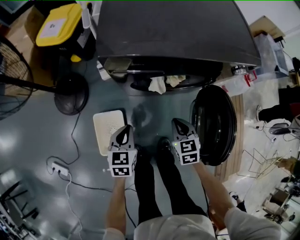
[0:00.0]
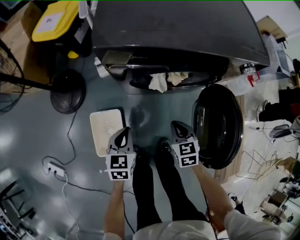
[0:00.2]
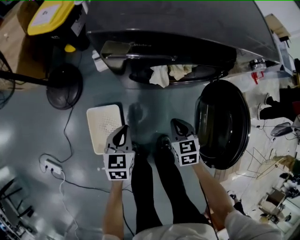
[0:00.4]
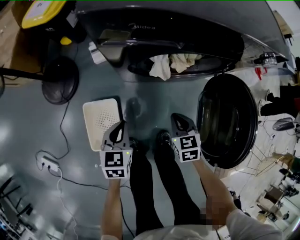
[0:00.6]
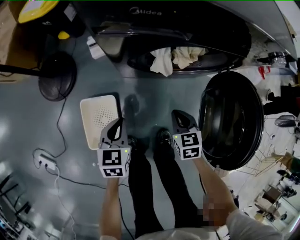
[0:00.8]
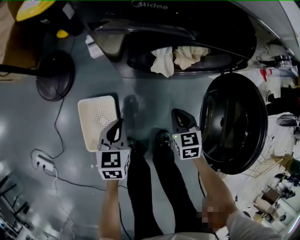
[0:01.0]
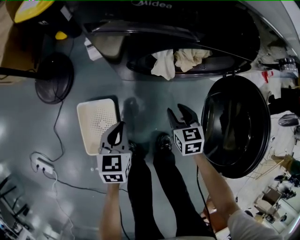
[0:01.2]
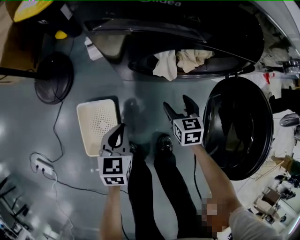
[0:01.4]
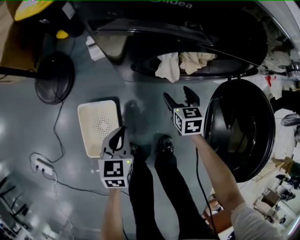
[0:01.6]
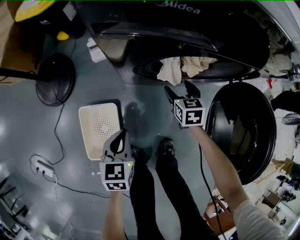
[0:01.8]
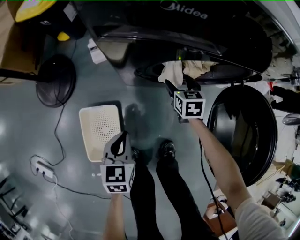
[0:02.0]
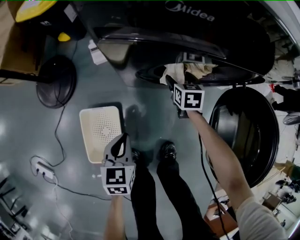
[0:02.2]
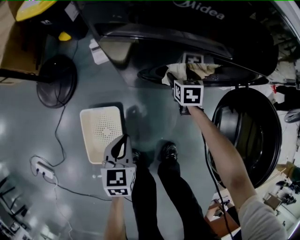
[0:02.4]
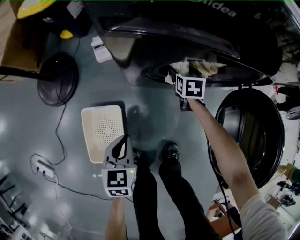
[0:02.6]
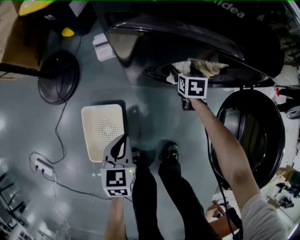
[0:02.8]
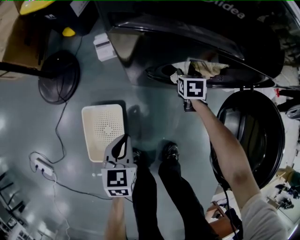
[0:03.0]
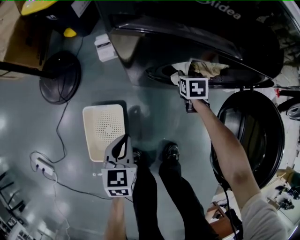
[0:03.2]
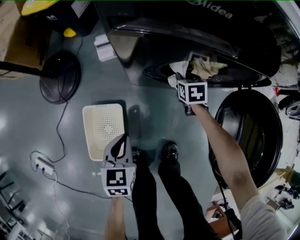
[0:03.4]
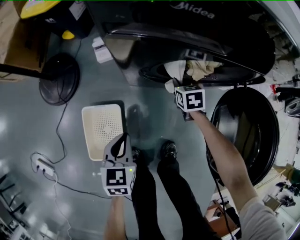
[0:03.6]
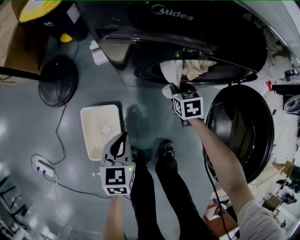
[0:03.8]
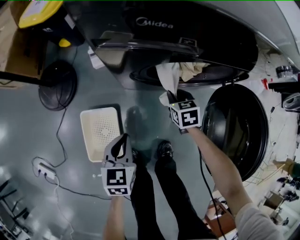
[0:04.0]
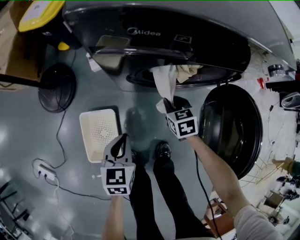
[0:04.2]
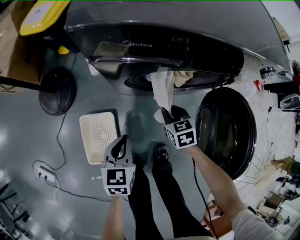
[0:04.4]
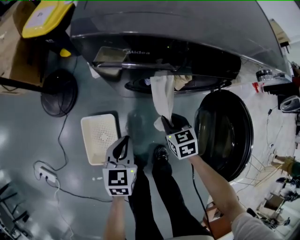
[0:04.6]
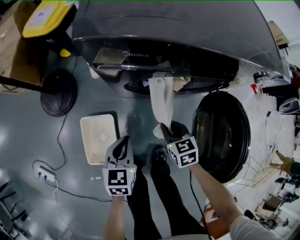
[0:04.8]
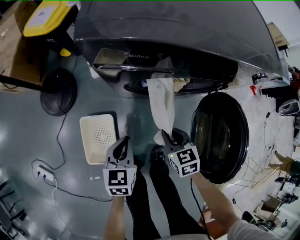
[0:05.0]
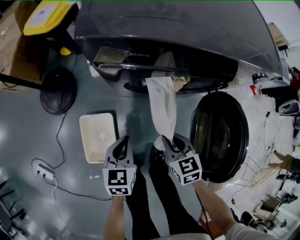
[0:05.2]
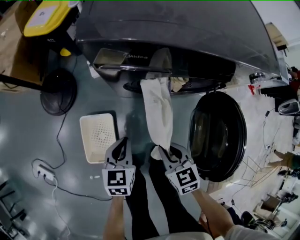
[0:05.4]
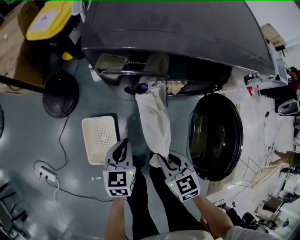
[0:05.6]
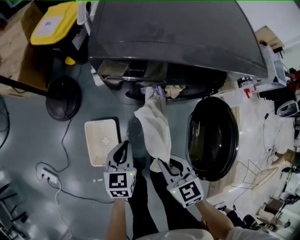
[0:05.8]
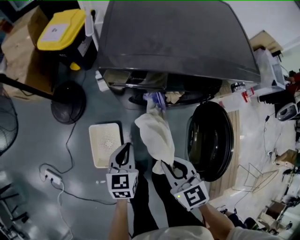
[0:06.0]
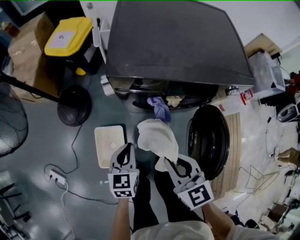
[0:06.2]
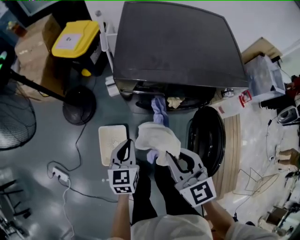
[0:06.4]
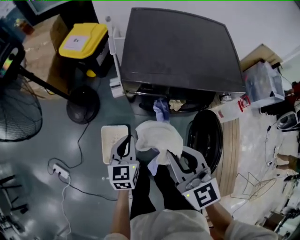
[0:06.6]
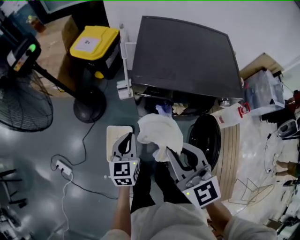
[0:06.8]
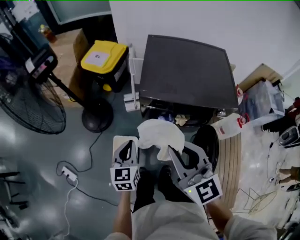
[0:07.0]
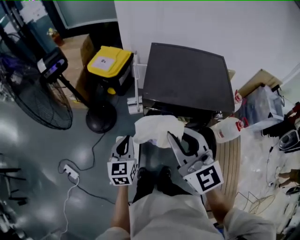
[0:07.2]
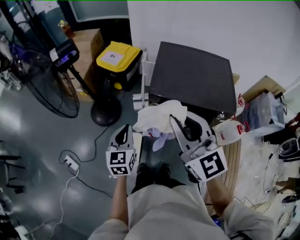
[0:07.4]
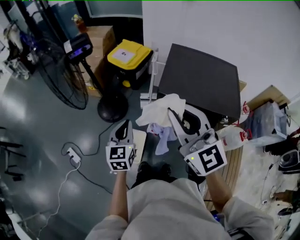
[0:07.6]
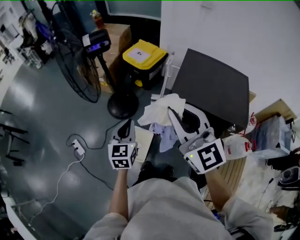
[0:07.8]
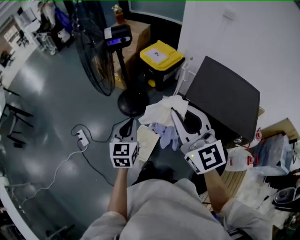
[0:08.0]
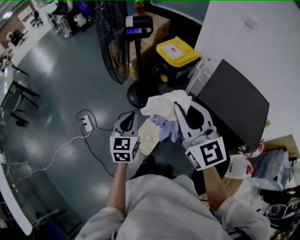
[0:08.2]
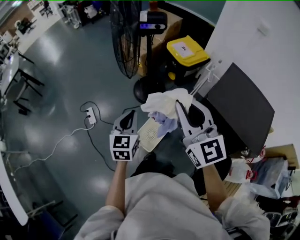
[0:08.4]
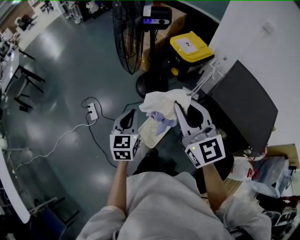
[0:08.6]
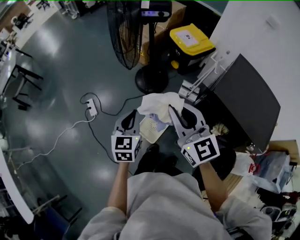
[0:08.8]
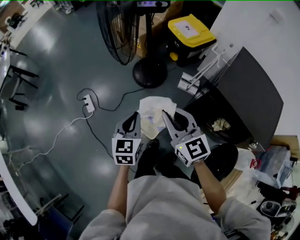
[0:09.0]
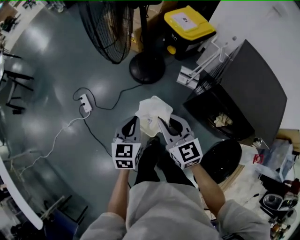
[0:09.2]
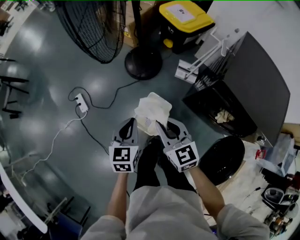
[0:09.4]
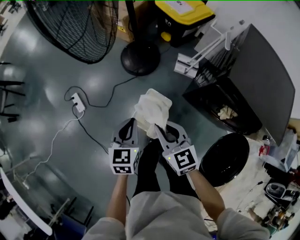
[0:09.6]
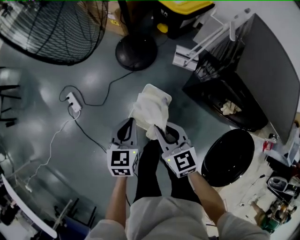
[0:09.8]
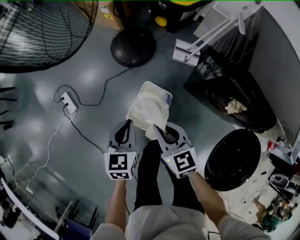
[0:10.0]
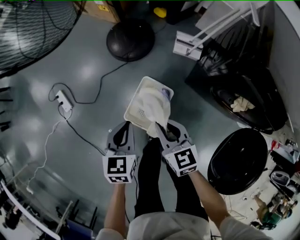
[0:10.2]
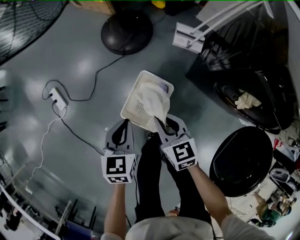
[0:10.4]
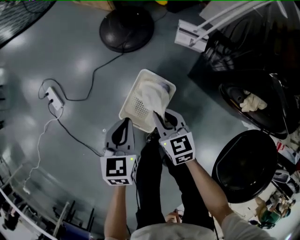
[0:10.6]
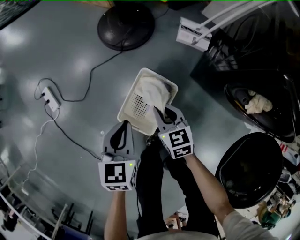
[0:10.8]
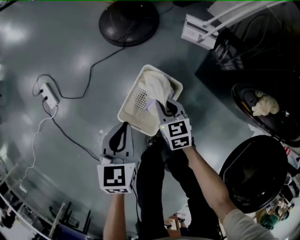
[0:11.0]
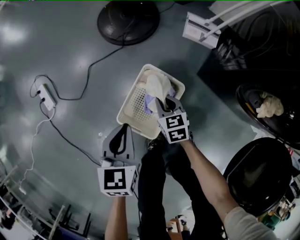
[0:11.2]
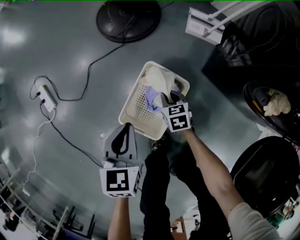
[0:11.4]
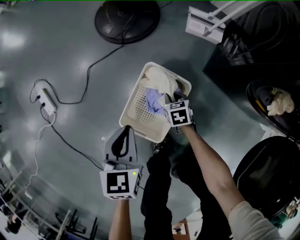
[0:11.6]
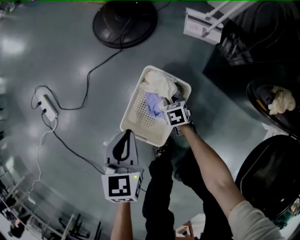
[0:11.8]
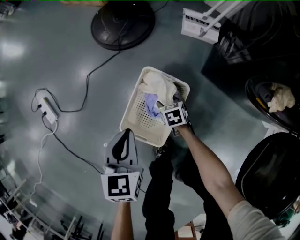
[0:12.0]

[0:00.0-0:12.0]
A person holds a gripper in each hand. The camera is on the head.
0:00.0 to 0:01.6: The left gripper is displaced downward by approximately 15 cm; the right gripper heads downward and forward, covering some 25 cm, and opens up.
0:01.6 to 0:03.0: The right gripper moves forward and downward, some 15 cm, and closes.
0:03.0 to 0:04.4: The left gripper goes about 10 cm upward and to the right. The right gripper goes approximately 20 cm backward and upward.
0:04.4 to 0:06.0: The left gripper heads upward, covering roughly 10 cm, while the right gripper goes about 30 cm upward and backward, and turns by some 20 degrees.
0:06.0 to 0:07.6: The grippers both shift upward by roughly 40 cm. The left gripper changes its angle by about 30 degrees, while the right gripper points its fingers about 40 degrees further upward.
0:07.6 to 0:09.0: The left gripper moves to the left, some 20 cm, and swivels approximately 20 degrees, while the right gripper travels to the left, downward and forward by about 30 cm, and changes its angle by about 30 degrees.
0:09.0 to 0:10.4: Both grippers travel together downward, about 40 cm. The right gripper rotates approximately 30 degrees.
0:10.4 to 0:12.0: The right gripper is displaced downward by approximately 40 cm, swivels about 30 degrees, and opens; the left gripper moves downward, some 15 cm.

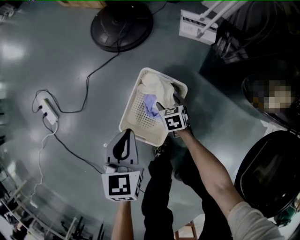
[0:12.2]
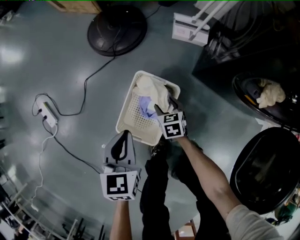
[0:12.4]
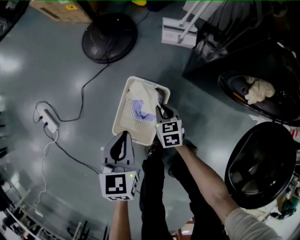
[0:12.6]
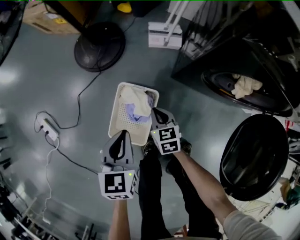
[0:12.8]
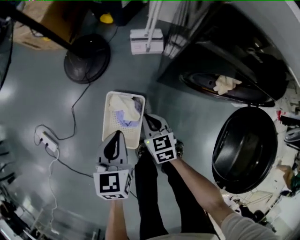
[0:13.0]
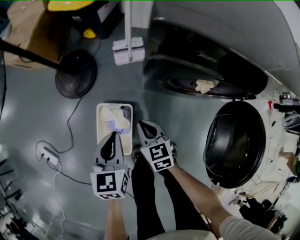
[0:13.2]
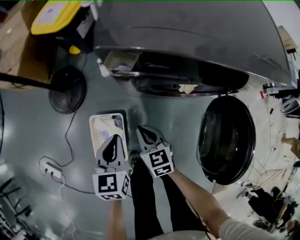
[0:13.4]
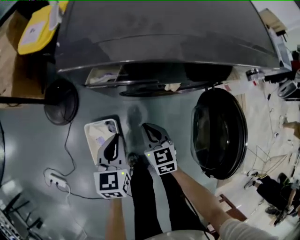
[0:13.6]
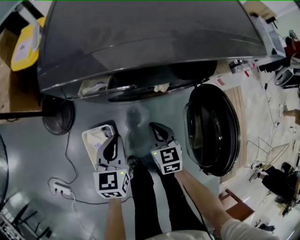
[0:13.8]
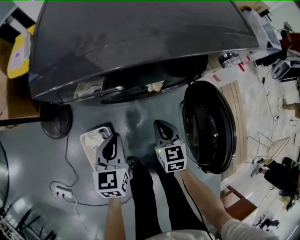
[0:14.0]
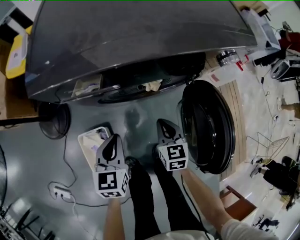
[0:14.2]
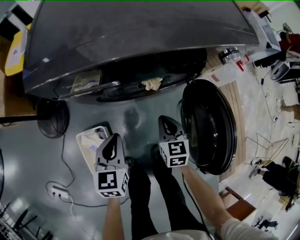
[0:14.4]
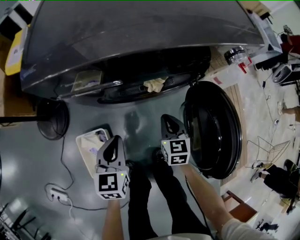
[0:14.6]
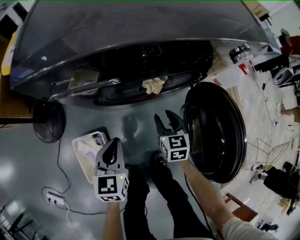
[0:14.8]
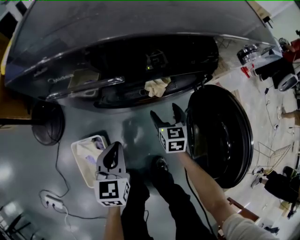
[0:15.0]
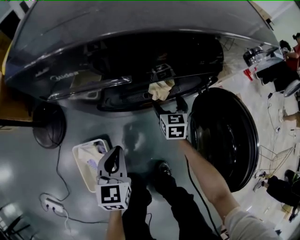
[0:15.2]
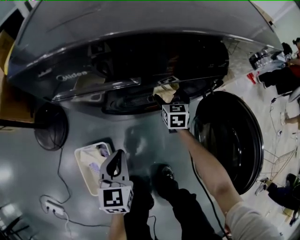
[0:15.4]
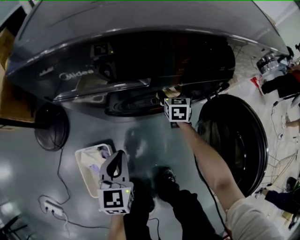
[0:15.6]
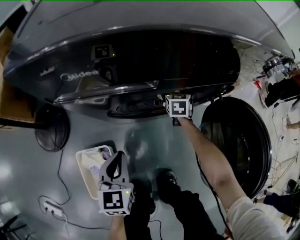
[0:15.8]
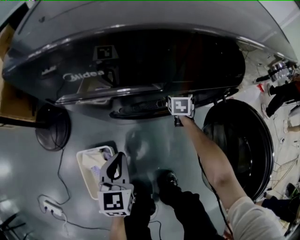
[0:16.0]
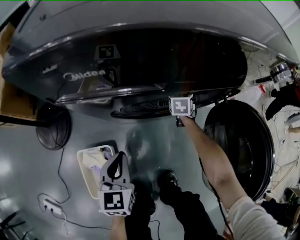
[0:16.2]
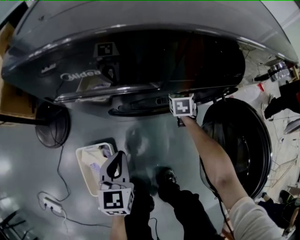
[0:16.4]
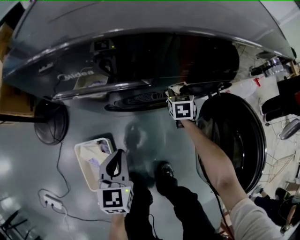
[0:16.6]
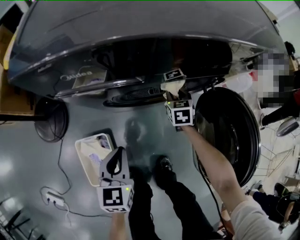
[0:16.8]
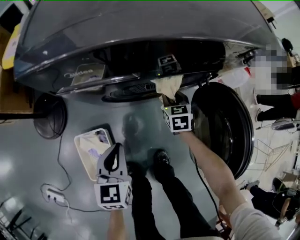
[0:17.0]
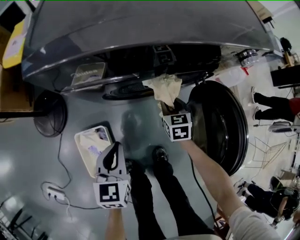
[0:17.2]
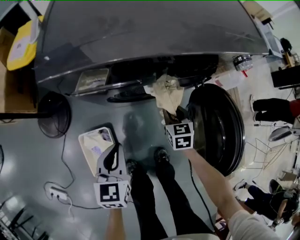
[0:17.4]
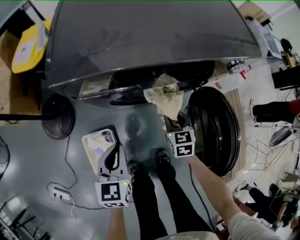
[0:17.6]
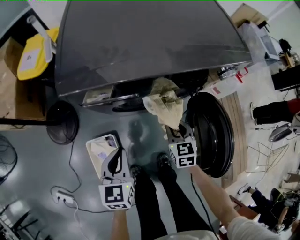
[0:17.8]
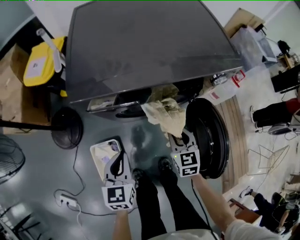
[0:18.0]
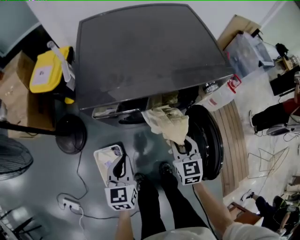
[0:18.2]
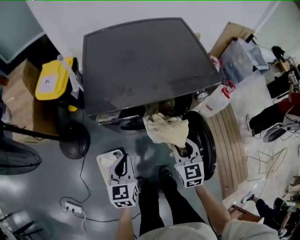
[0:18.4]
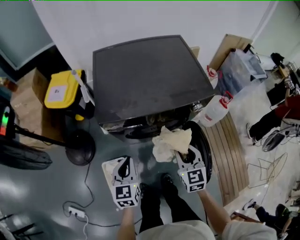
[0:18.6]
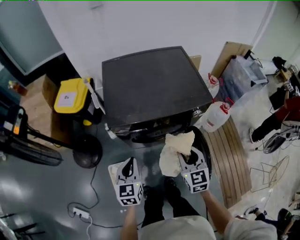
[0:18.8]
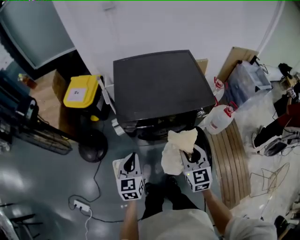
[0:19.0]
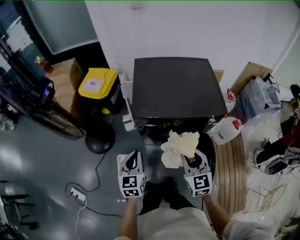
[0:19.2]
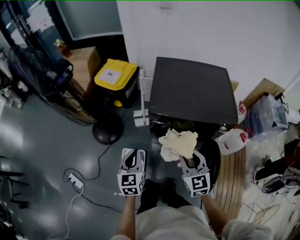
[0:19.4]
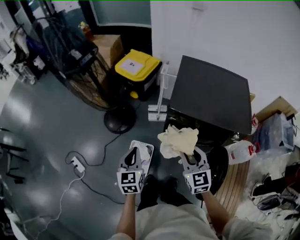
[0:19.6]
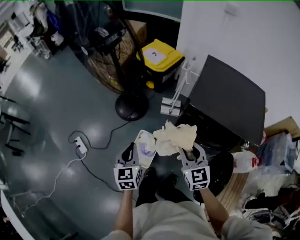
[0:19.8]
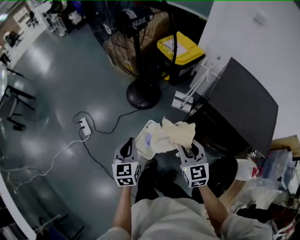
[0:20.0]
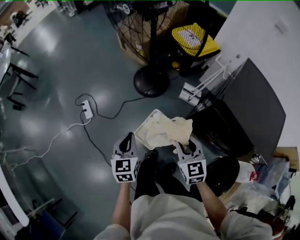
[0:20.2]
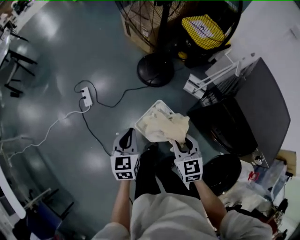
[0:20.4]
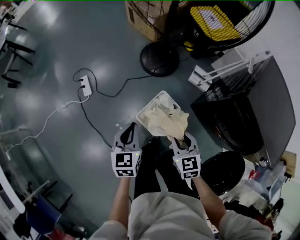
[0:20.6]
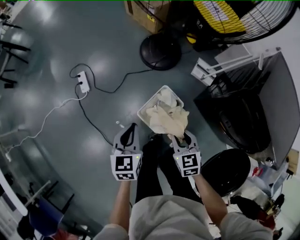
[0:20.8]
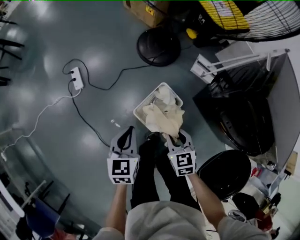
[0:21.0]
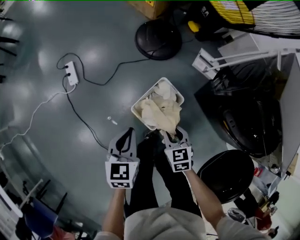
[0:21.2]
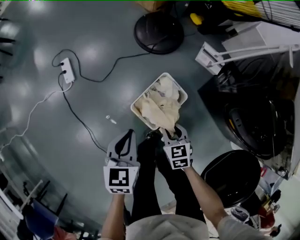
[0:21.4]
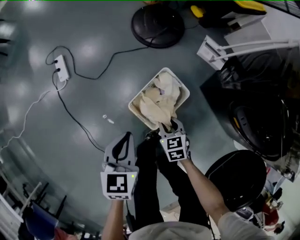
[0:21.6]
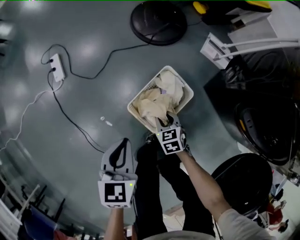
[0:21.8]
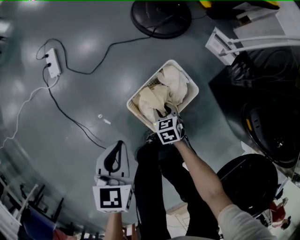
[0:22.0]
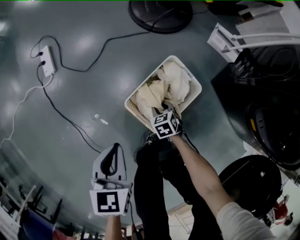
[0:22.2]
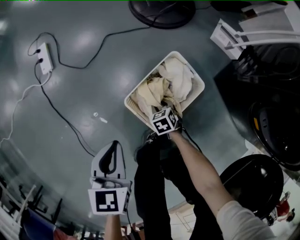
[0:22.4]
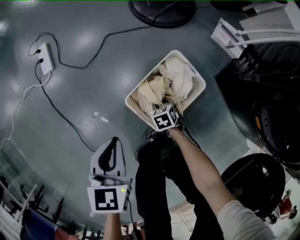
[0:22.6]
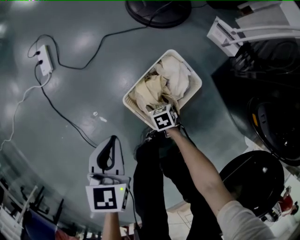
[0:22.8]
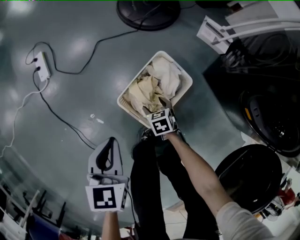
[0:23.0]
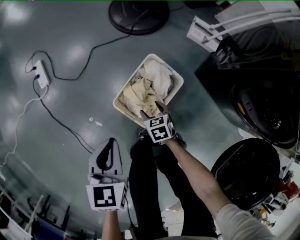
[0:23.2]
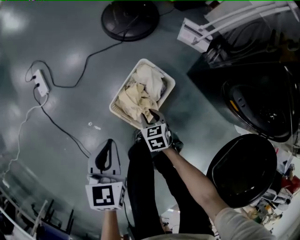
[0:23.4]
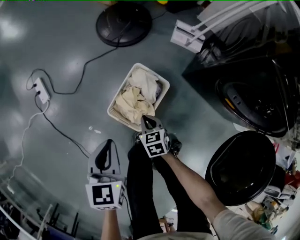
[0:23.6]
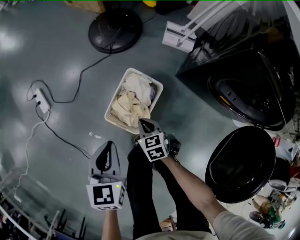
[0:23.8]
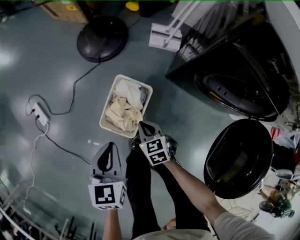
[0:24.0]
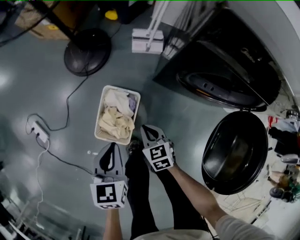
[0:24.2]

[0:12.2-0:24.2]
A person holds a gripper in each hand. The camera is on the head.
0:12.2 to 0:13.8: The left gripper ends up some 40 cm from where it was, and changes its angle by approximately 40 degrees. Meanwhile the right gripper travels upward by approximately 40 cm, swivels approximately 50 degrees, and closes.
0:13.8 to 0:15.2: The left gripper is displaced downward by some 10 cm, while the right gripper is displaced forward, downward and to the right by about 20 cm, and opens its fingers.
0:15.2 to 0:16.6: The right gripper moves forward, some 5 cm, and closes its fingers.
0:16.6 to 0:18.2: The left gripper is displaced upward by roughly 20 cm; the right gripper moves upward and backward, some 40 cm.
0:18.2 to 0:19.8: The right gripper shifts by about 40 cm, and swivels approximately 50 degrees. Meanwhile the left gripper shifts by about 35 cm, and swivels about 40 degrees.
0:19.8 to 0:21.2: Both grippers travel together downward and to the left, about 40 cm. The right gripper turns by roughly 40 degrees, while the left gripper rotates roughly 20 degrees.
0:21.2 to 0:22.6: The left gripper moves downward, some 25 cm. Meanwhile the right gripper moves downward, some 40 cm, and swivels approximately 20 degrees.
0:22.6 to 0:24.2: The left gripper changes place by some 30 cm, and turns by roughly 30 degrees. The right gripper is displaced upward by about 30 cm, rotates about 40 degrees, and opens and closes again.
